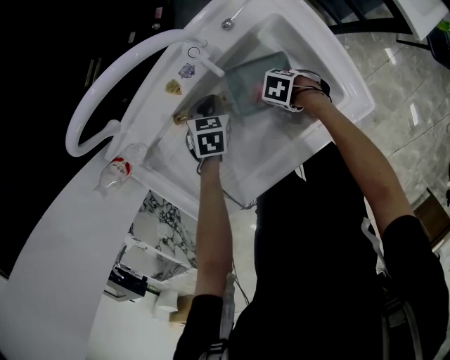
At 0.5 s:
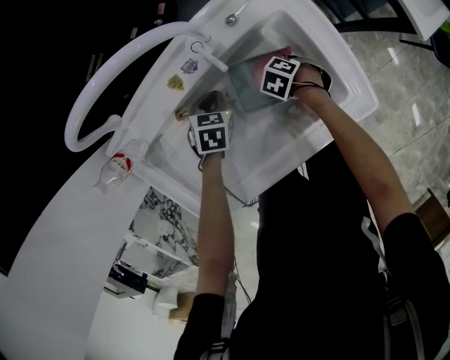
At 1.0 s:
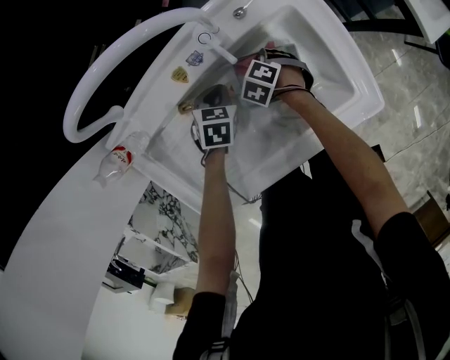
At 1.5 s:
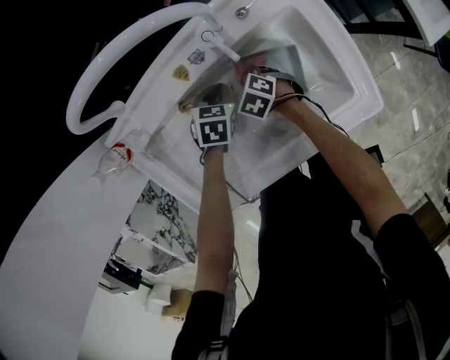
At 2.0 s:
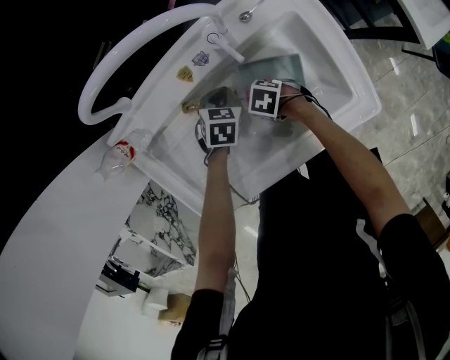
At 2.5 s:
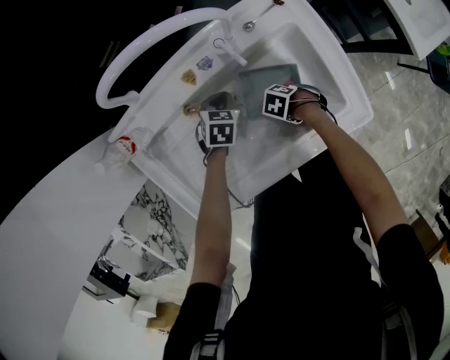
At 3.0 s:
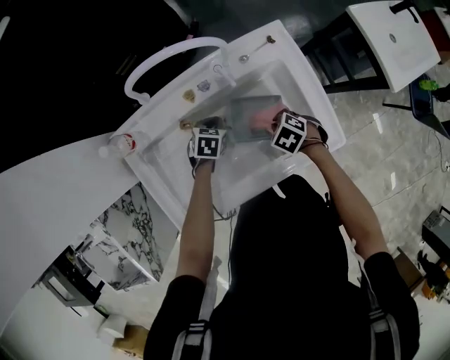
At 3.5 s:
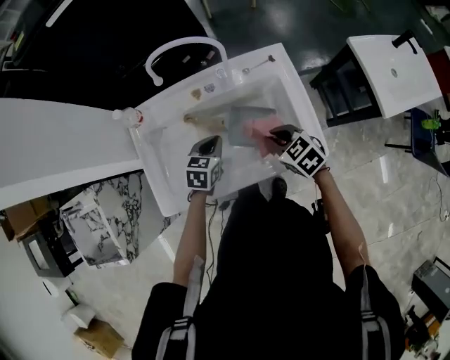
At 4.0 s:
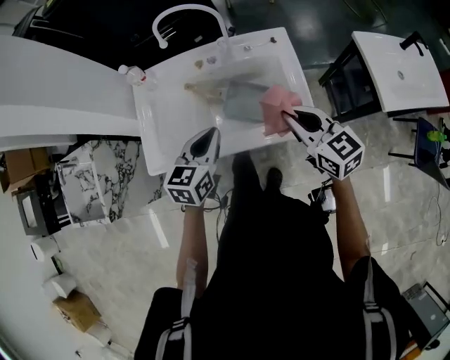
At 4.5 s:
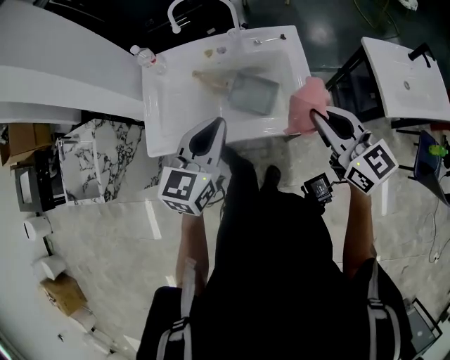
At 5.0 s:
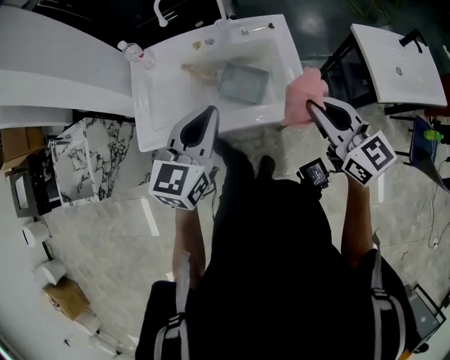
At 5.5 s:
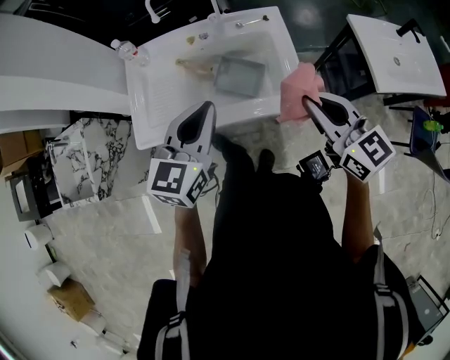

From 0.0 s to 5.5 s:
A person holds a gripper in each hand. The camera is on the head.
From 0.0 s to 2.0 s: The right gripper changes place by some 10 cm.
From 2.0 s to 3.5 s: The right gripper moves upward, approximately 25 cm, and changes its angle by roughly 40 degrees. The left gripper moves upward, some 15 cm, and rotates about 20 degrees.
From 3.5 s to 5.5 s: The left gripper shifts some 30 cm upward and backward, and angles its fingers upward, by some 30 degrees; the right gripper heads upward, backward and to the right, covering some 30 cm, and angles its fingers upward, by roughly 40 degrees.

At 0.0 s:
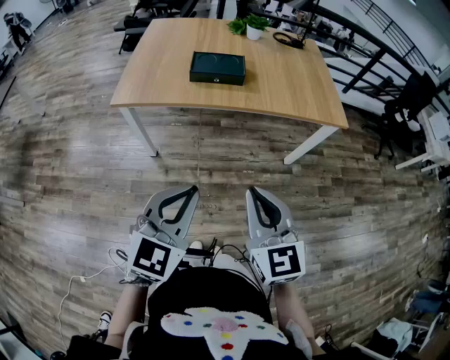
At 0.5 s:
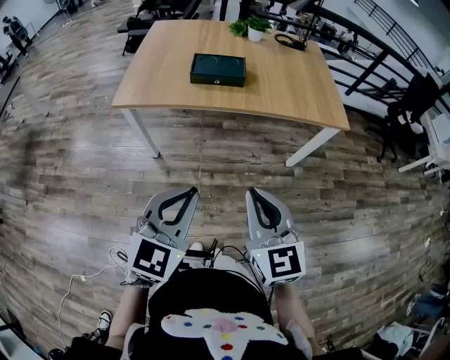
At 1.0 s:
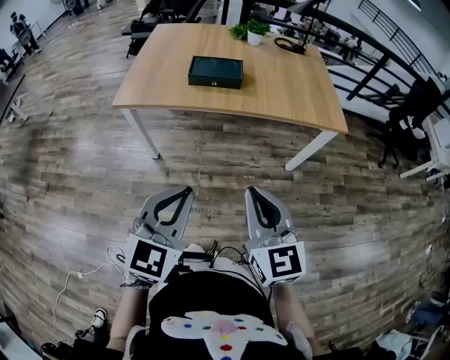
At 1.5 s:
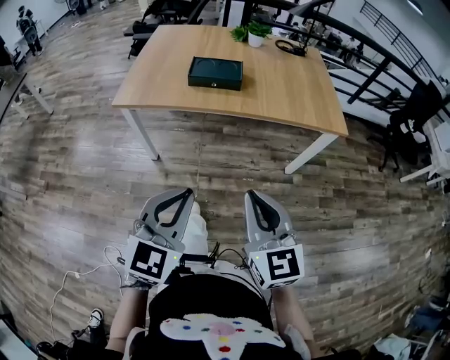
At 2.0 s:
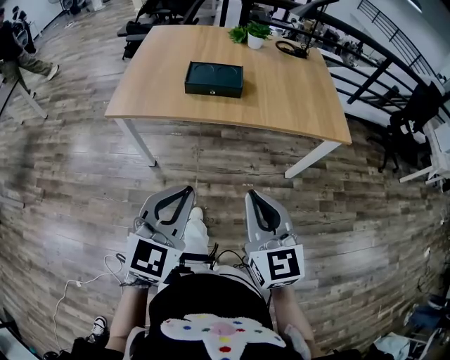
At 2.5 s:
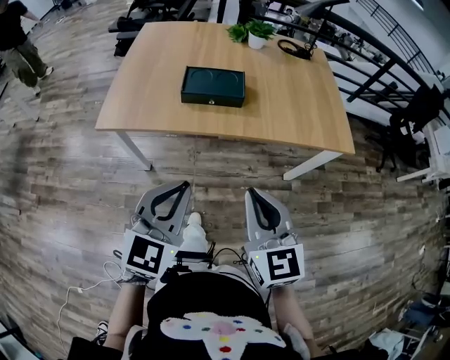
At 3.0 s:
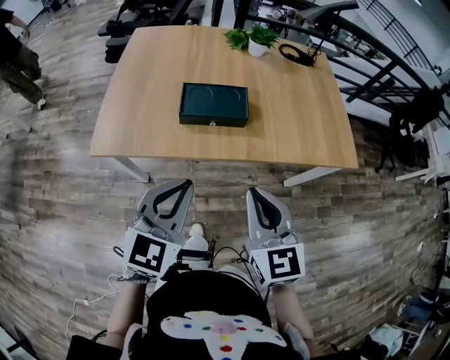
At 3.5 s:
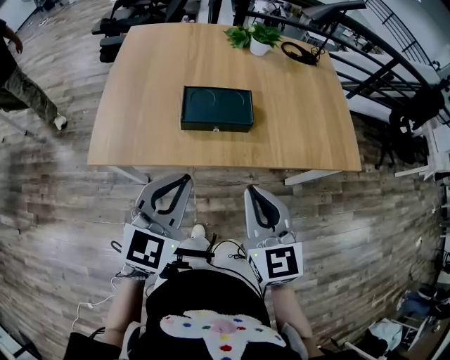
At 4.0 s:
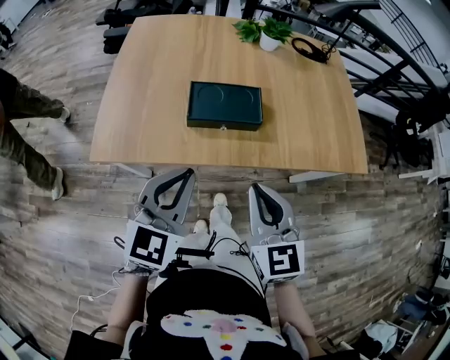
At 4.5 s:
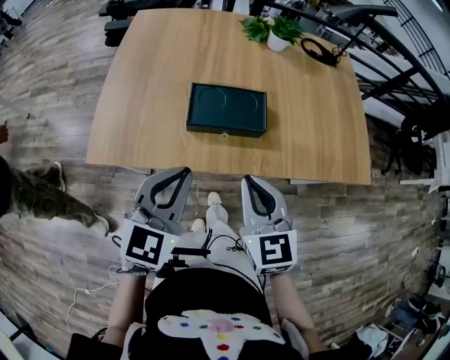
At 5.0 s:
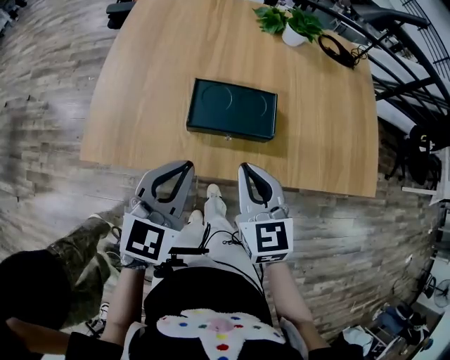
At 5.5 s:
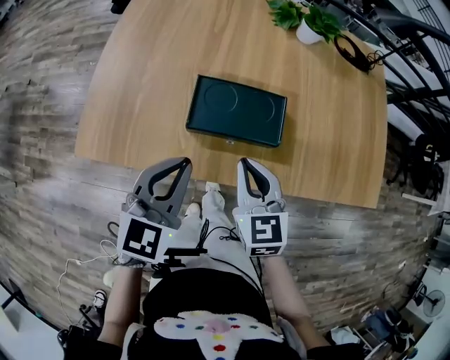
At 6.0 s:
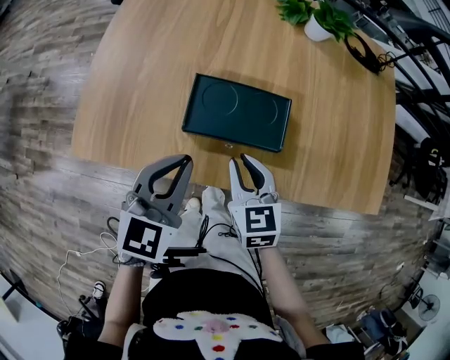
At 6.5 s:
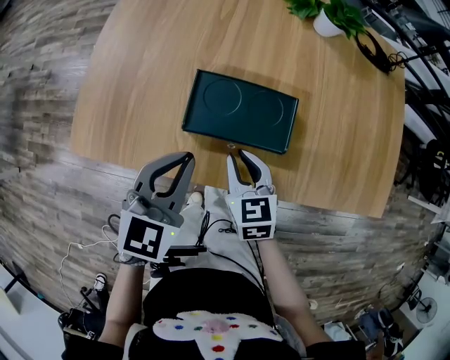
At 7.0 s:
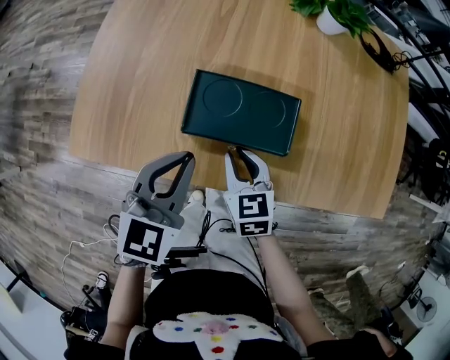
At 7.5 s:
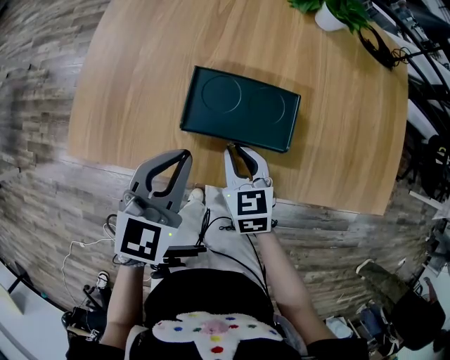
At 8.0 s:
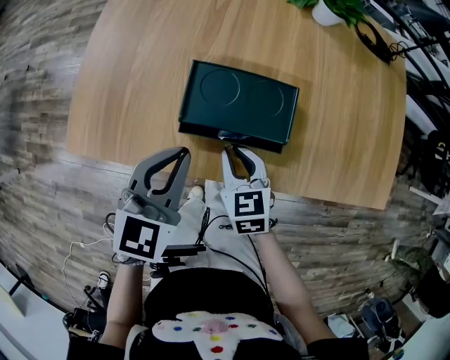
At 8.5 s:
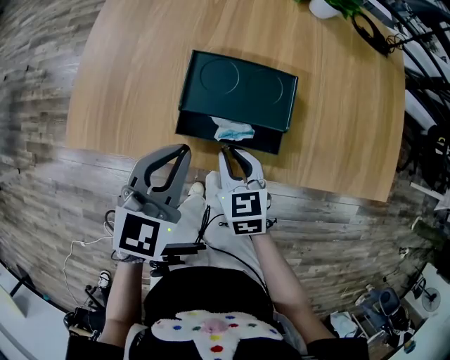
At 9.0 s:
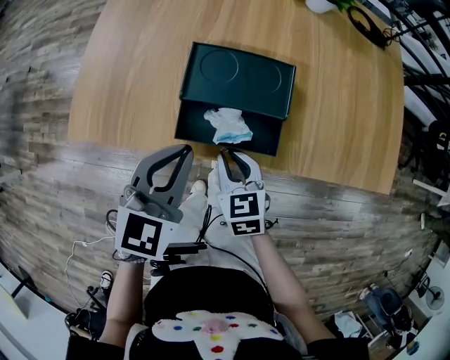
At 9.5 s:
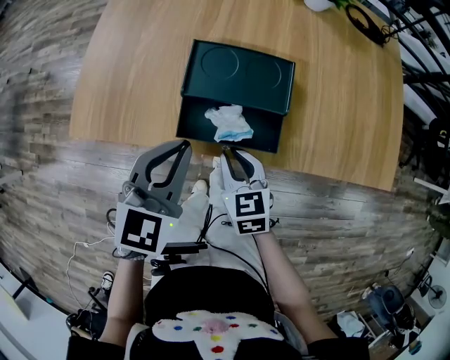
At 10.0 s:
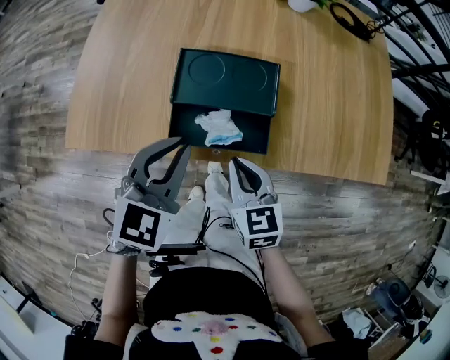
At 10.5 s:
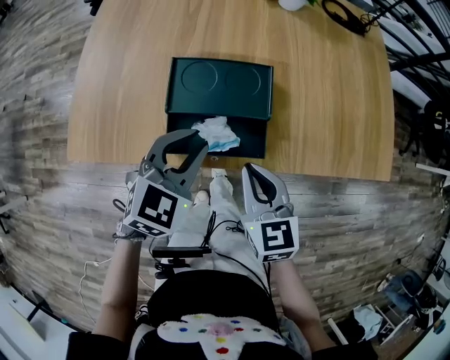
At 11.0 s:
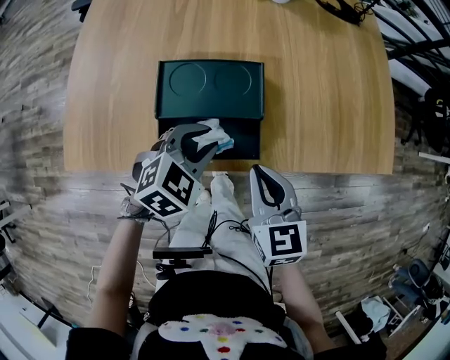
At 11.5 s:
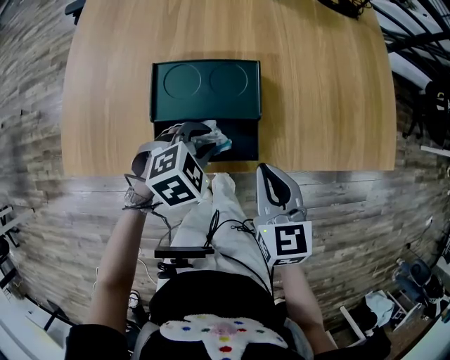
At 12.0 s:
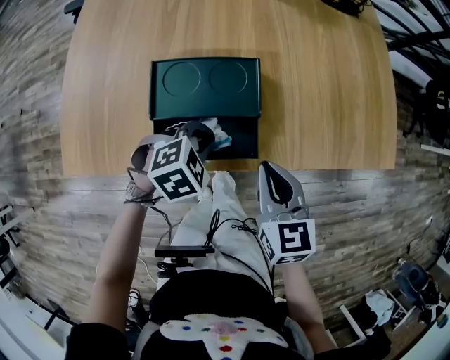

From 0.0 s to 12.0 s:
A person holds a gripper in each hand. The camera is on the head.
From 0.0 s to 2.0 s: Both grippers move forward, some 5 cm.
From 2.0 s to 4.0 s: The two grippers go roughly 30 cm forward.
From 4.0 s to 6.0 s: The two grippers go roughly 25 cm forward and downward.
From 6.0 s to 8.0 s: The right gripper shifts roughly 5 cm downward.
From 8.0 s to 10.0 s: The right gripper moves backward, roughly 10 cm. Meanwhile the left gripper shifts about 5 cm backward.
From 10.0 s to 12.0 s: The left gripper shifts approximately 15 cm downward and to the right, and points its fingers some 40 degrees further downward; the right gripper travels to the right by approximately 10 cm.

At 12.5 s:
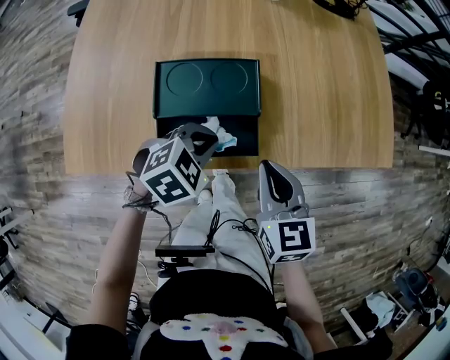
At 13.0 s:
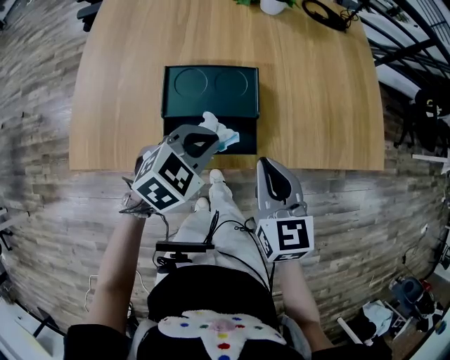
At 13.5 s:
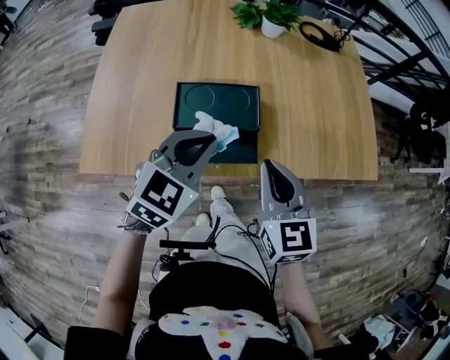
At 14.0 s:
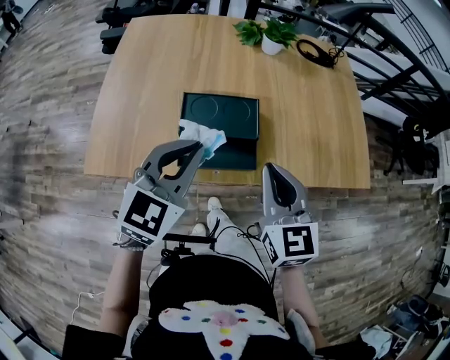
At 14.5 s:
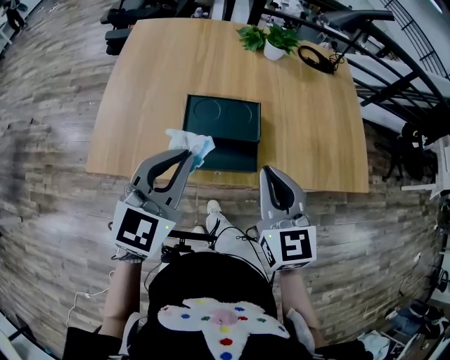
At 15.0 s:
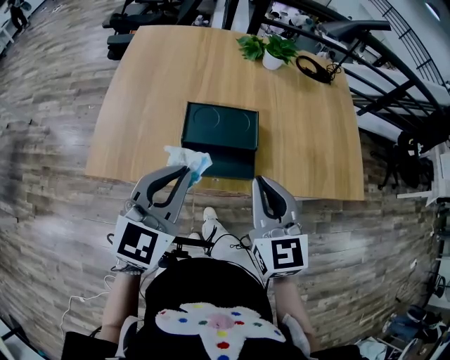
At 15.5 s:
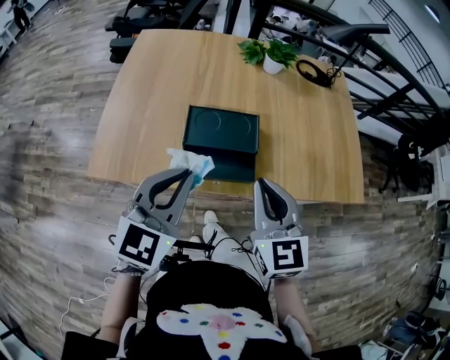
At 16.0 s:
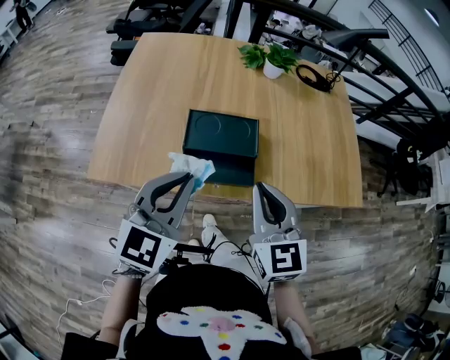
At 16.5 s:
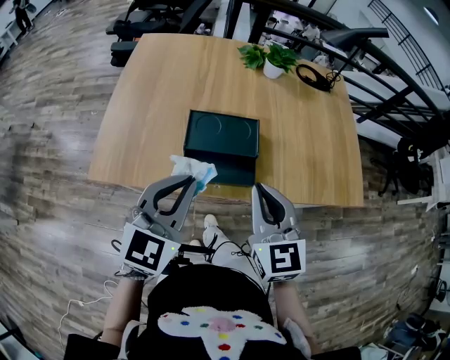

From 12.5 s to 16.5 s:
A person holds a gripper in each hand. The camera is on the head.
From 12.5 s to 14.5 s: The right gripper is displaced upward by about 15 cm, and changes its angle by roughly 20 degrees. The left gripper heads upward, covering roughly 25 cm, and points its fingers some 40 degrees further upward.
From 14.5 s to 16.5 s: The grippers move only a little.

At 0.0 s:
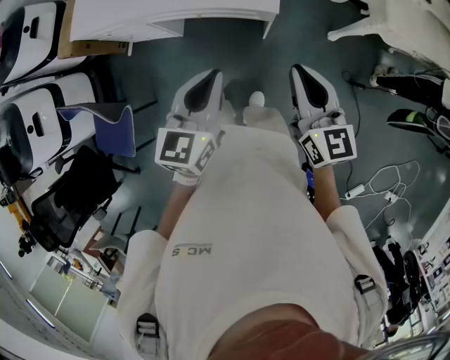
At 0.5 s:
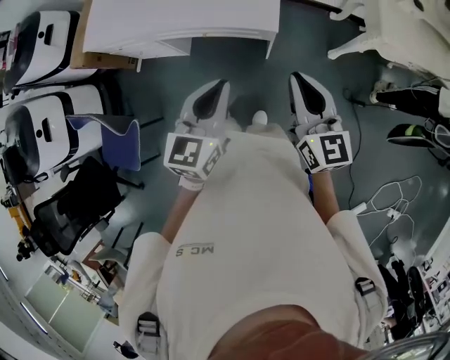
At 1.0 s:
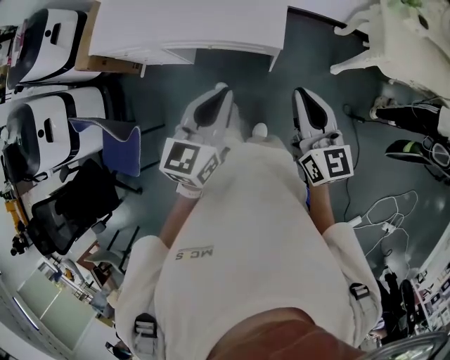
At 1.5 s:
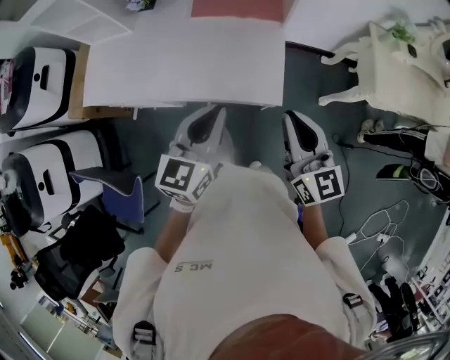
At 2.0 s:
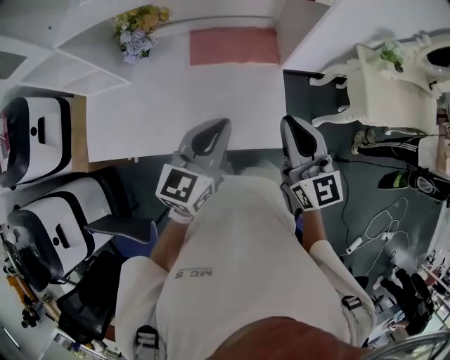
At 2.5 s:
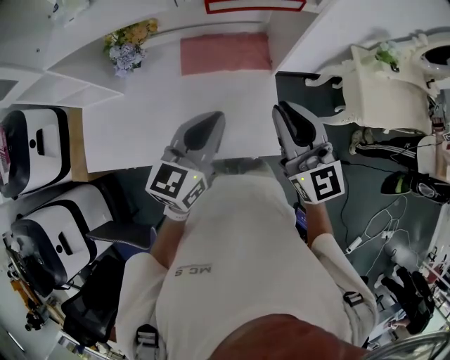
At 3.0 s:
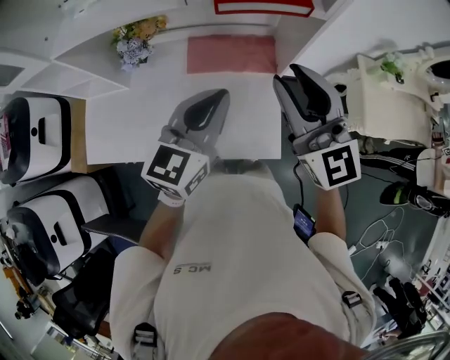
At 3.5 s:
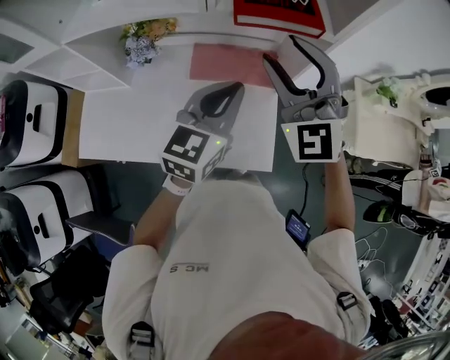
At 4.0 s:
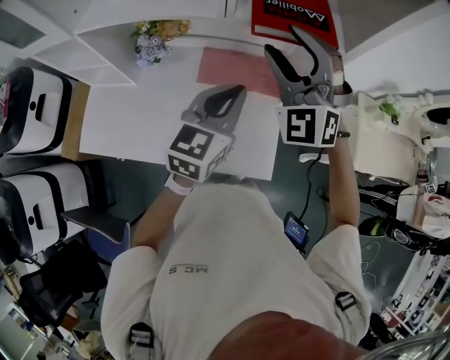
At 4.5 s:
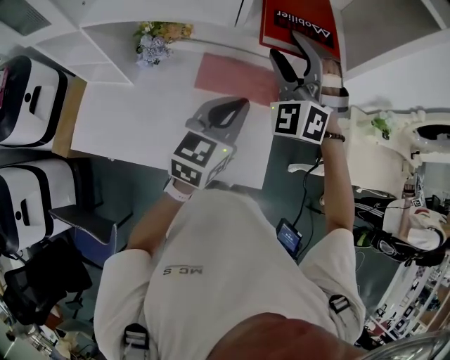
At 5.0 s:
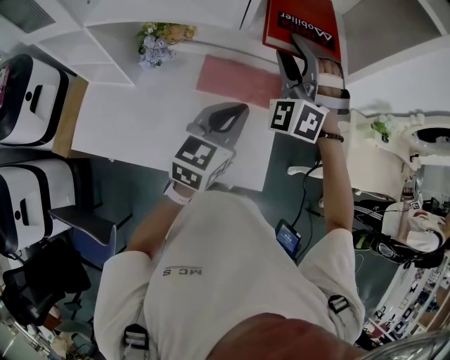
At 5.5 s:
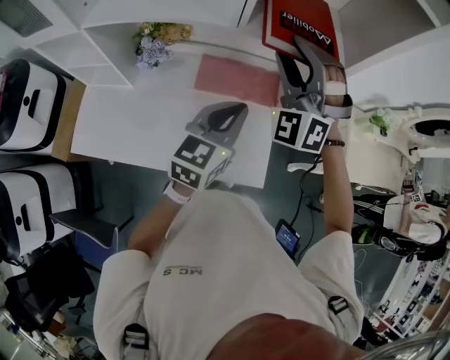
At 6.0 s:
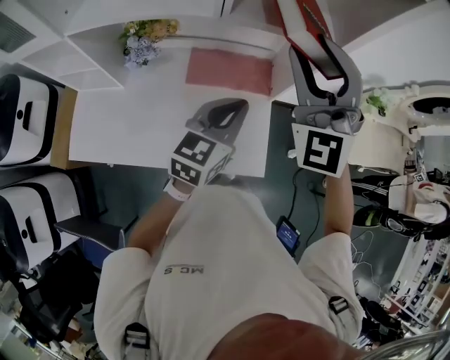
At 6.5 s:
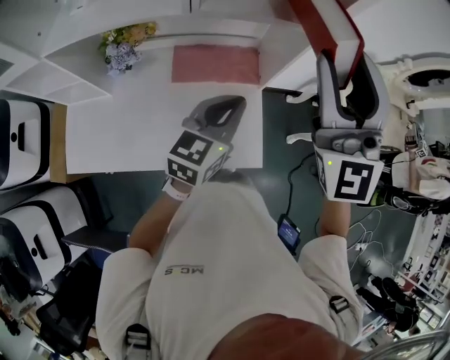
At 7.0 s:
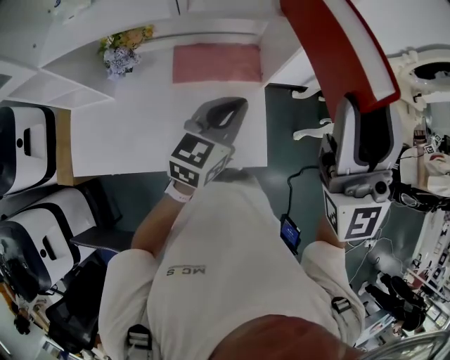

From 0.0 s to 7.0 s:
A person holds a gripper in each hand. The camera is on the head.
From 0.0 s to 2.0 s: The pair of grippers is taken forward, roughly 40 cm.
From 2.0 s to 3.5 s: The two grippers go roughly 20 cm forward and upward. The right gripper twists approximately 50 degrees counterclockwise, seen from behind, and opens.
From 3.5 s to 5.0 s: The right gripper heads forward, covering about 10 cm, and changes its angle by roughly 40 degrees.
From 5.0 s to 7.0 s: The right gripper heads backward, to the right and upward, covering about 30 cm, and twists roughly 50 degrees clockwise, seen from behind, while the left gripper travels to the right by some 10 cm.
